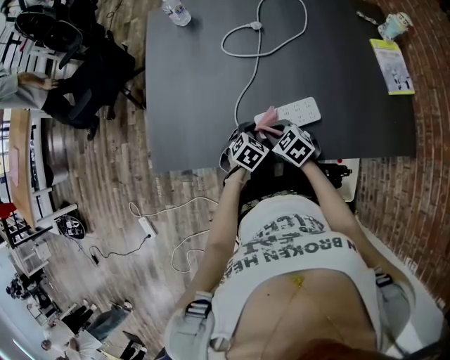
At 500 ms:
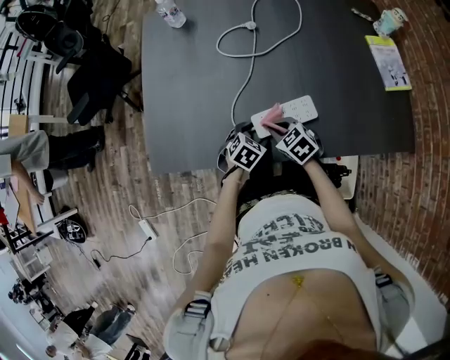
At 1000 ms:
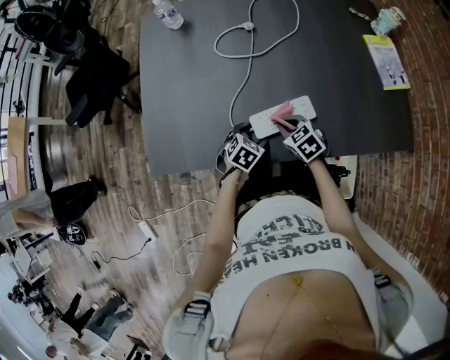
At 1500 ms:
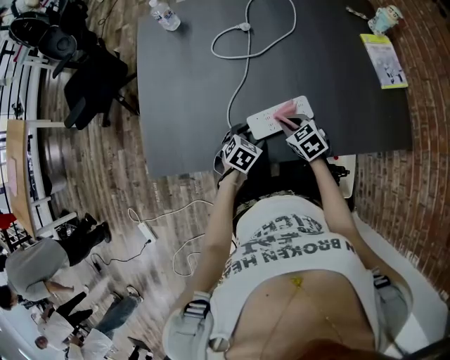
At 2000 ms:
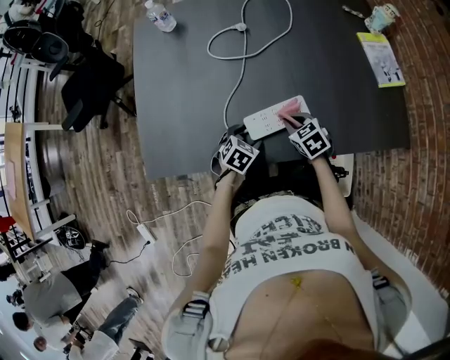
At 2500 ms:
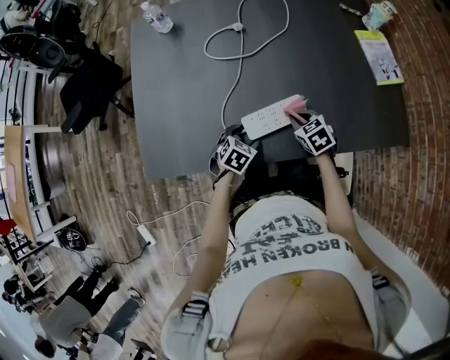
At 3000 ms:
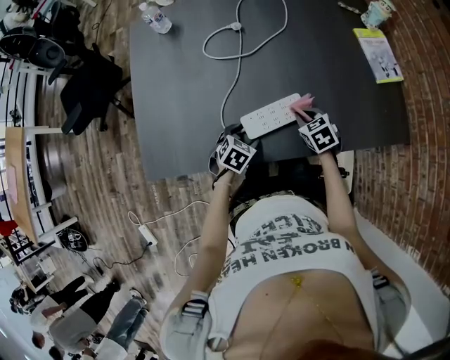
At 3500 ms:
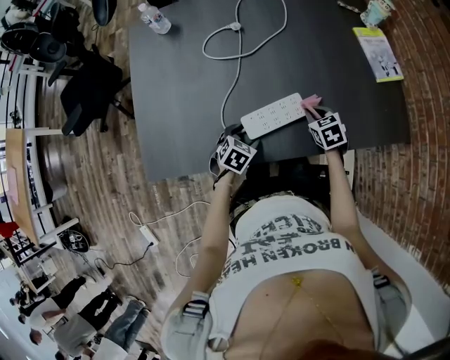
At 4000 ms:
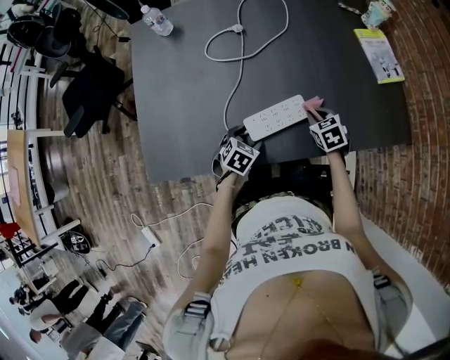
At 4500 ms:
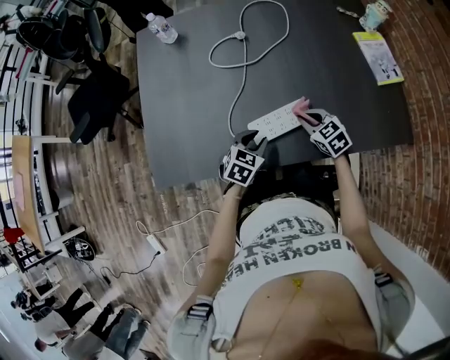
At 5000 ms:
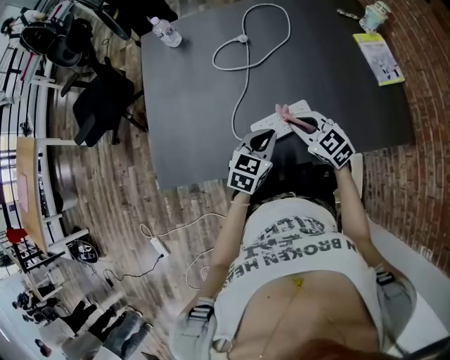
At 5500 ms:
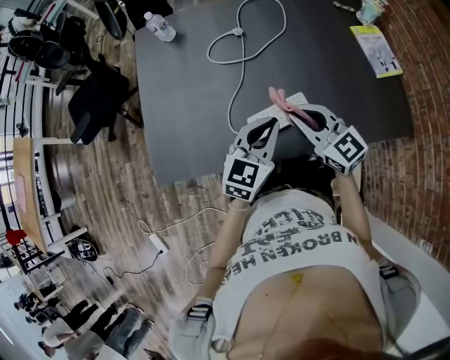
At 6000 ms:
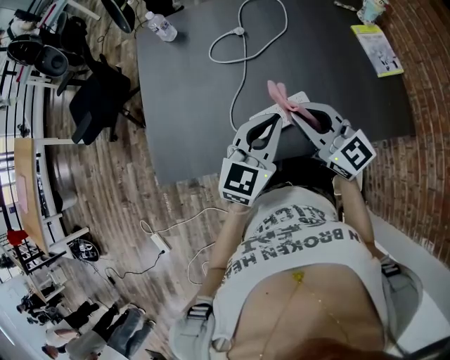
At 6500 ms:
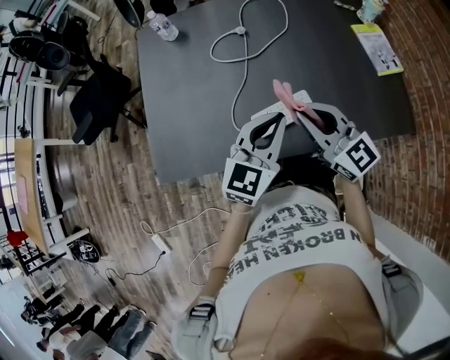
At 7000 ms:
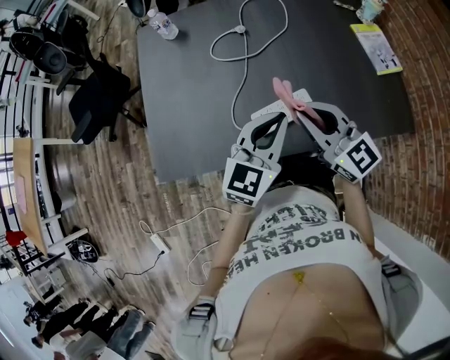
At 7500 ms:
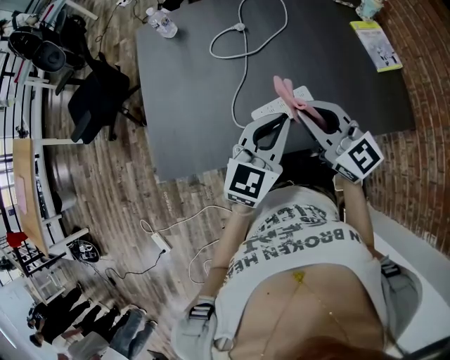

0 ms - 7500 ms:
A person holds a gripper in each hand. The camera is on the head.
0 ms - 2000 ms: The right gripper moves to the right, about 10 cm.
2000 ms - 4000 ms: The right gripper moves to the right, some 10 cm.
4000 ms - 5500 ms: The right gripper moves upward and to the left, some 25 cm, and tilts its fingers approximately 50 degrees upward. Meanwhile the left gripper is displaced upward by some 25 cm, angles its fingers upward, by about 40 degrees, and closes up.
5500 ms - 7500 ms: The two grippers go approximately 5 cm upward.

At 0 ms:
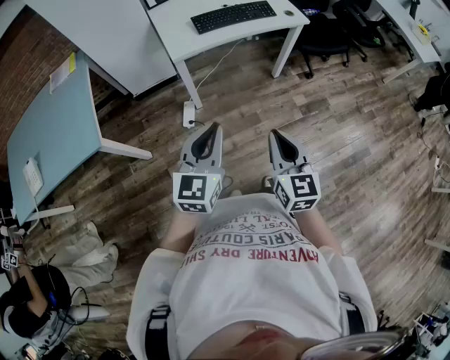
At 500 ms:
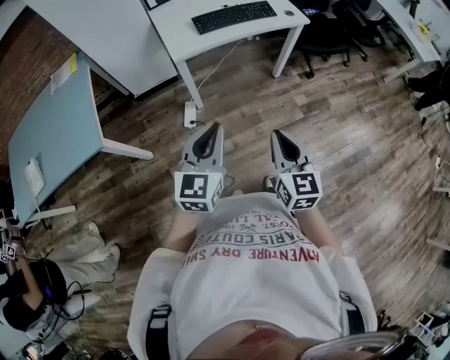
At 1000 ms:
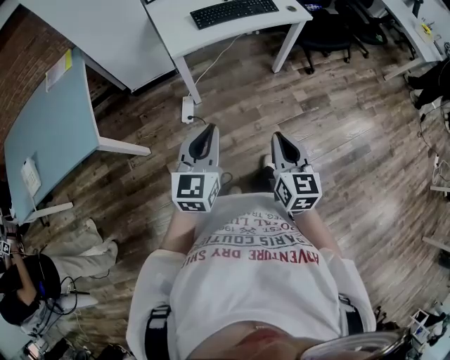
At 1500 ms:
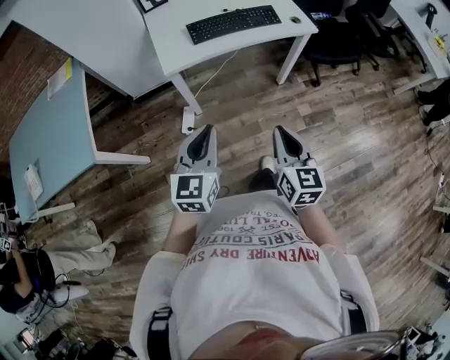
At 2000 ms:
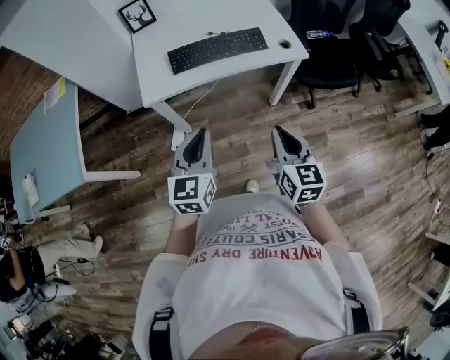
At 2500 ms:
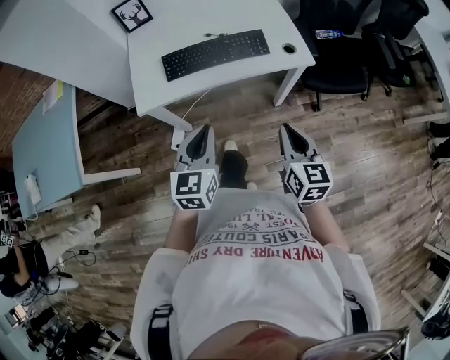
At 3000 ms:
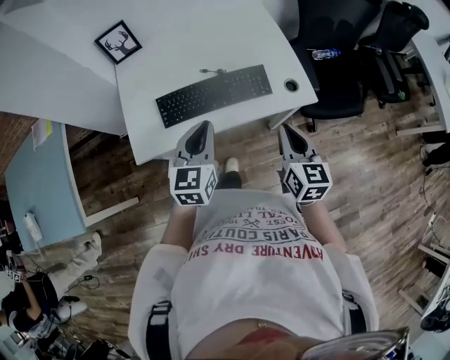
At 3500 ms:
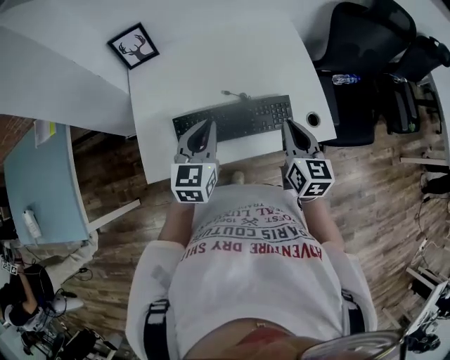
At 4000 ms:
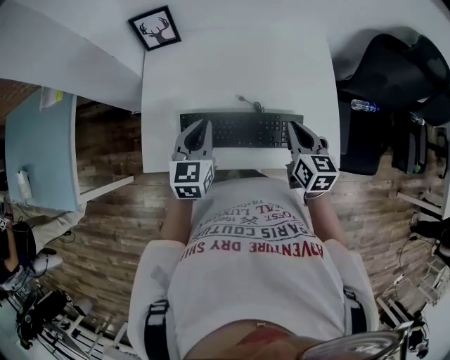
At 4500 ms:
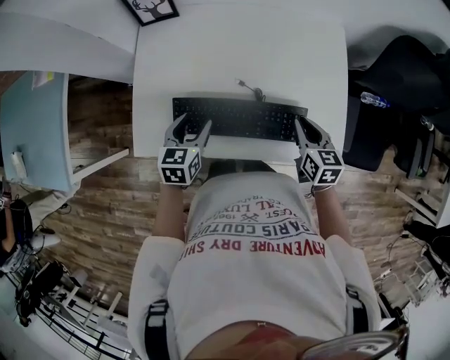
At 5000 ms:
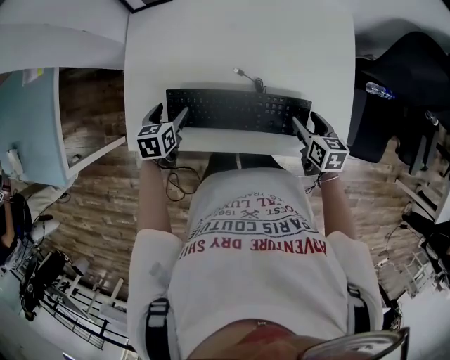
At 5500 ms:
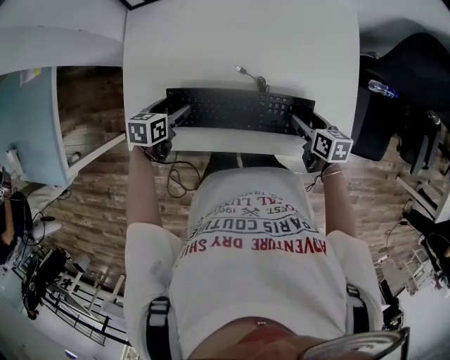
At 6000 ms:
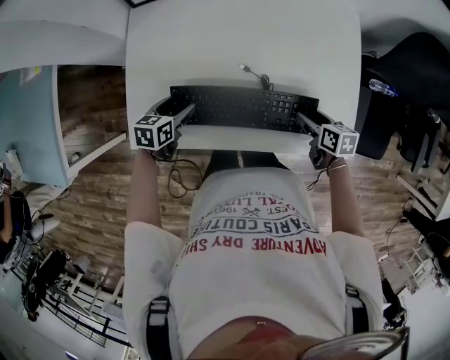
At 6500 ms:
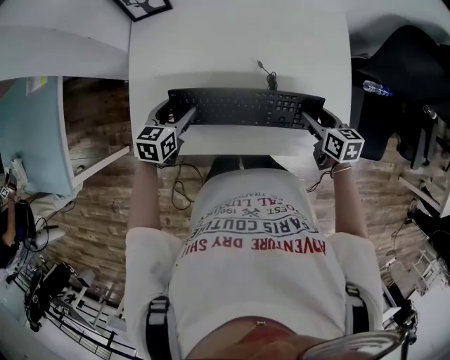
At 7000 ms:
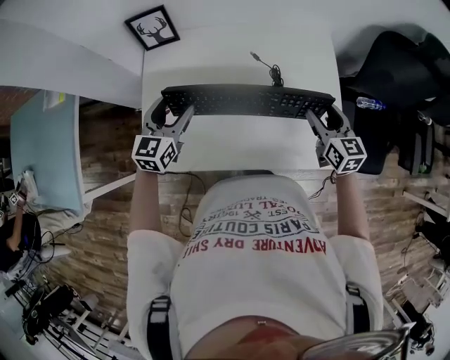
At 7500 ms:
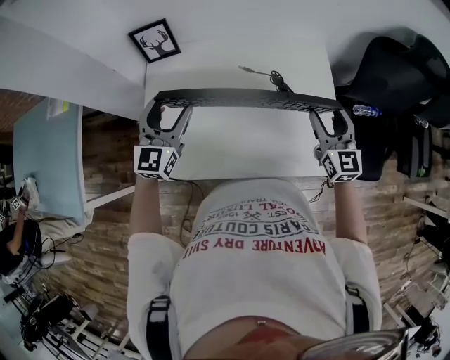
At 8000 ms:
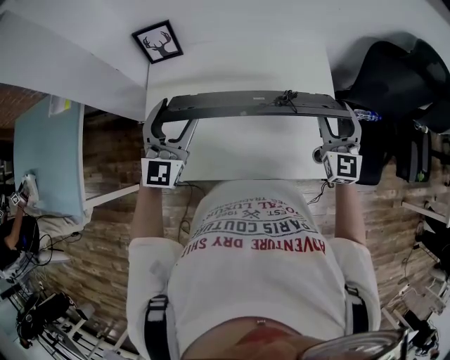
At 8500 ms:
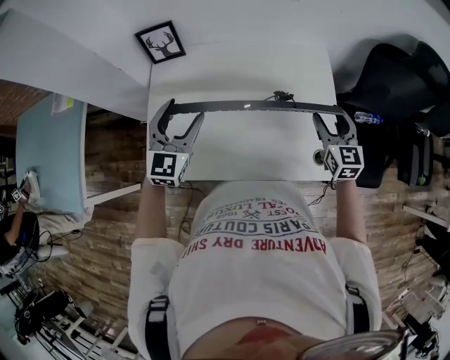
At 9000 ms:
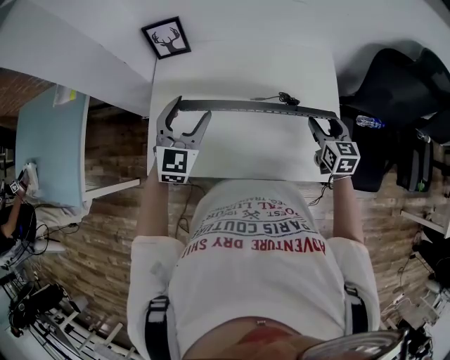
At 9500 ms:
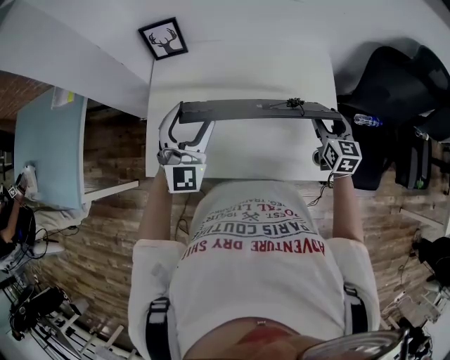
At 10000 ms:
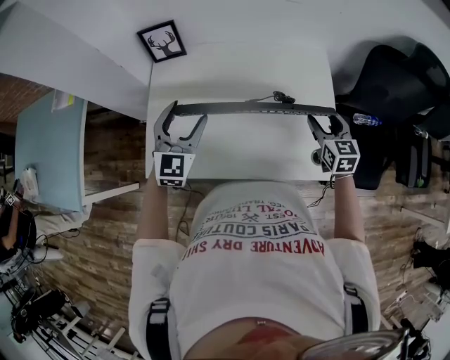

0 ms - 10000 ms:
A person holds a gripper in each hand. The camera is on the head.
0 ms - 2000 ms: The grippers both shift forward and to the right by about 30 cm.
2000 ms - 4000 ms: Both grippers are carried forward, approximately 50 cm.
4000 ms - 6000 ms: Both grippers travel together downward, approximately 20 cm. The right gripper rotates roughly 30 degrees, and opens up, while the left gripper changes its angle by approximately 40 degrees, and opens.
6000 ms - 8000 ms: Both grippers move upward, roughly 30 cm. The left gripper tips its fingers upward by some 50 degrees, while the right gripper points its fingers some 50 degrees further upward.
8000 ms - 10000 ms: The right gripper is displaced downward by roughly 10 cm, and swivels roughly 30 degrees.

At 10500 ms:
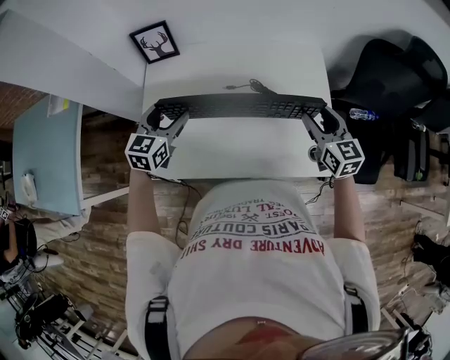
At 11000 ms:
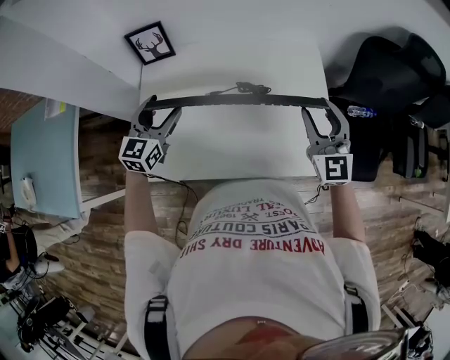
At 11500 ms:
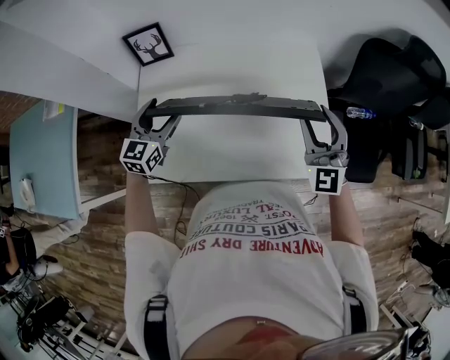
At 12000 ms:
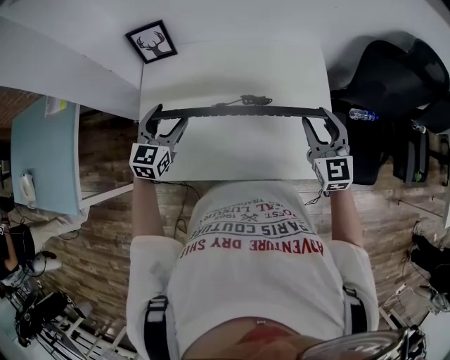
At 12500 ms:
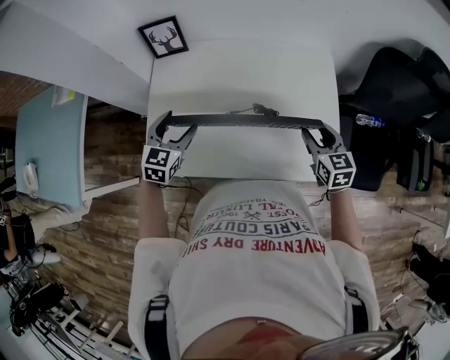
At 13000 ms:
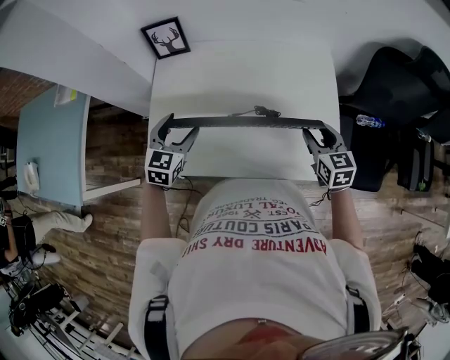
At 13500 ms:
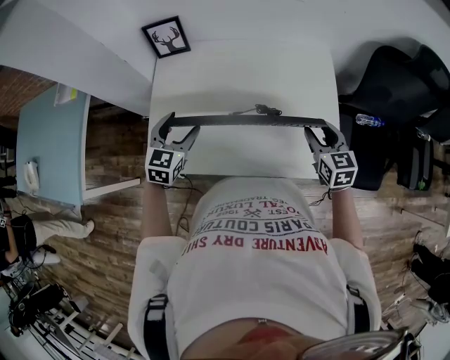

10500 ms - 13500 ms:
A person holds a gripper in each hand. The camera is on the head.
10500 ms - 12000 ms: The right gripper moves some 10 cm upward and comes back.
12000 ms - 13500 ms: The right gripper moves downward, roughly 5 cm, and turns by approximately 20 degrees. Meanwhile the left gripper shifts by approximately 5 cm.

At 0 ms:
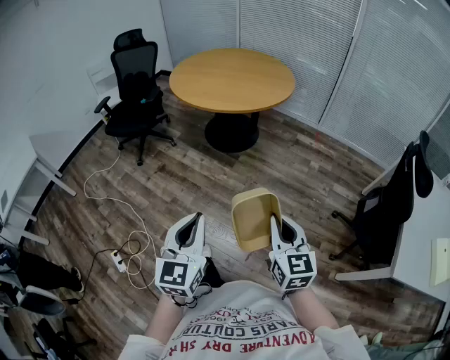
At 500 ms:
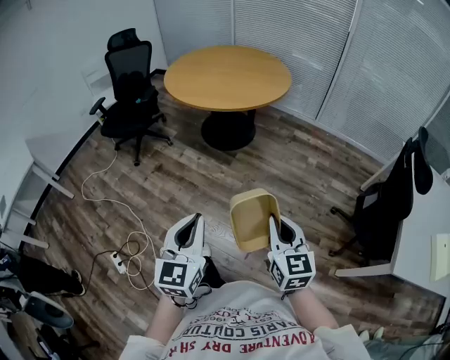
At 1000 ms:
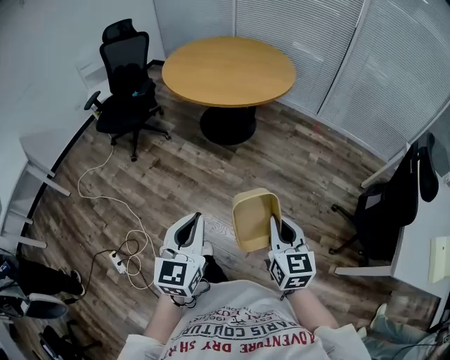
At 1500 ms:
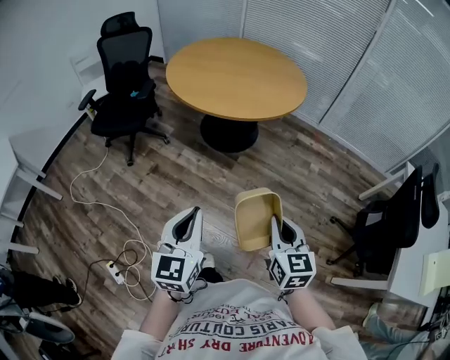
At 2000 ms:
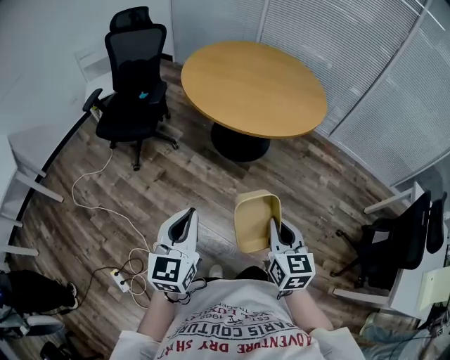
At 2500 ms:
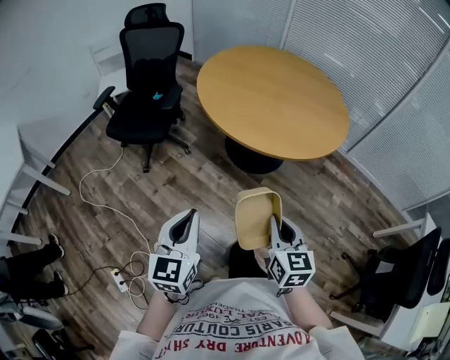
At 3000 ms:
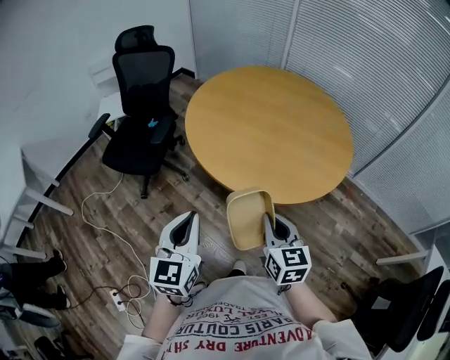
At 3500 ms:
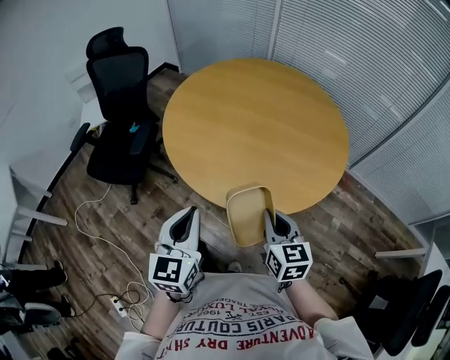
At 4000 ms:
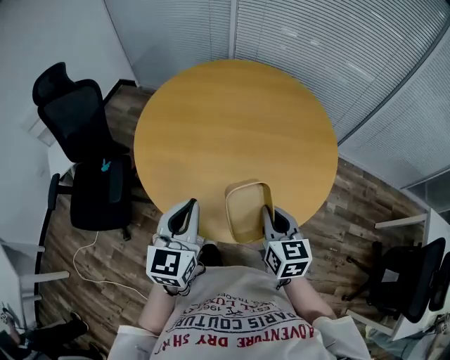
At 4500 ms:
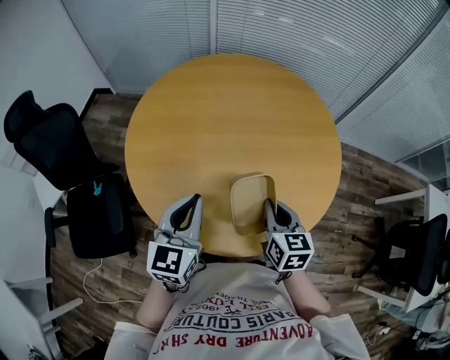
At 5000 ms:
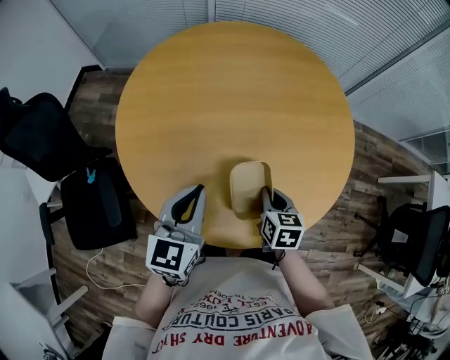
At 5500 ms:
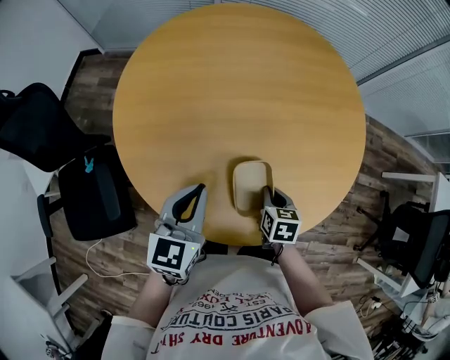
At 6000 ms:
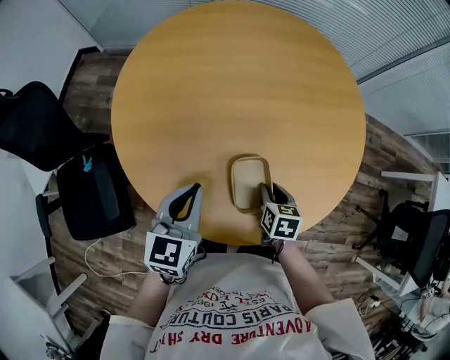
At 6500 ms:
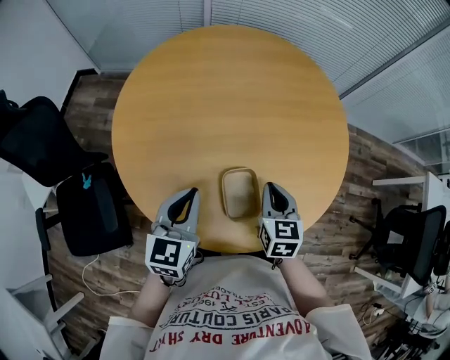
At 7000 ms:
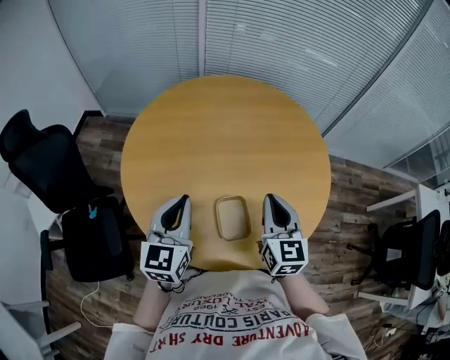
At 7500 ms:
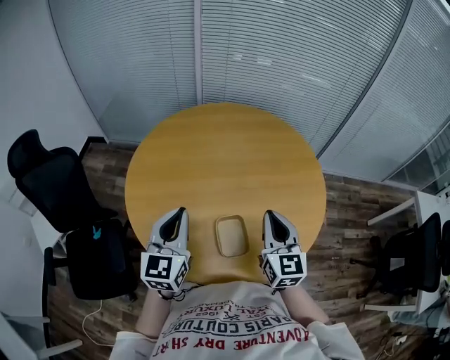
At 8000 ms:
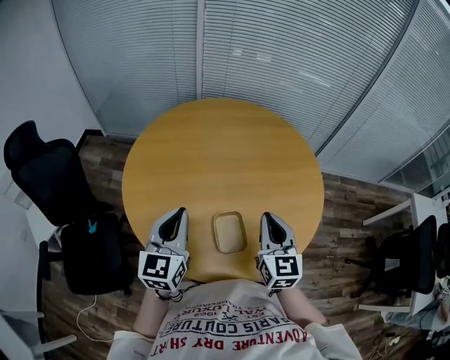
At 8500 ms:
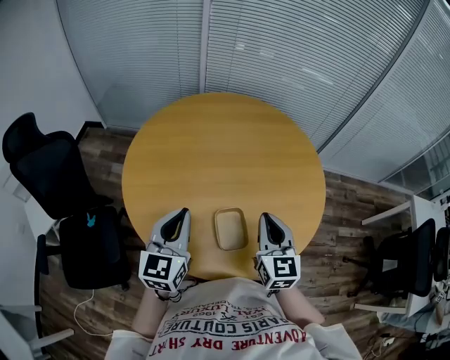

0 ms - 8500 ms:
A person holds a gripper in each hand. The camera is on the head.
0 ms - 2000 ms: The grippers both shift forward and to the left by some 35 cm.
2000 ms - 4000 ms: Both grippers are carried forward, approximately 60 cm.
4000 ms - 6500 ms: The two grippers go some 15 cm forward, downward and to the left. The right gripper rotates some 20 degrees, and opens and closes again.
6500 ms - 8500 ms: The two grippers go roughly 10 cm upward. The right gripper rotates roughly 20 degrees.
